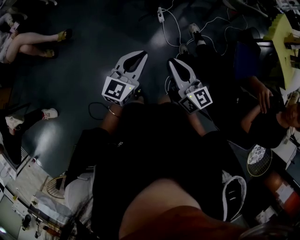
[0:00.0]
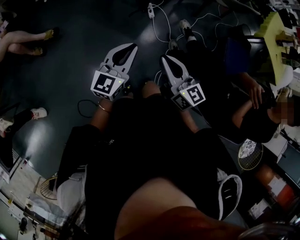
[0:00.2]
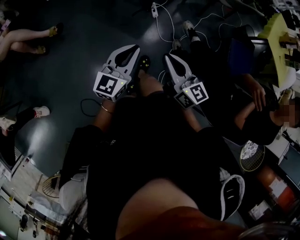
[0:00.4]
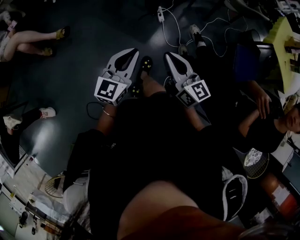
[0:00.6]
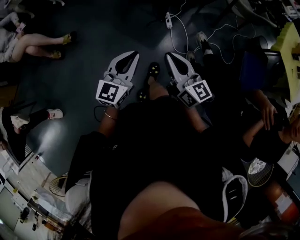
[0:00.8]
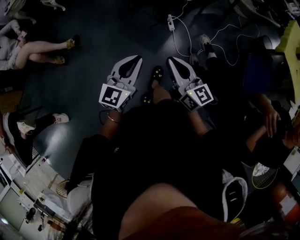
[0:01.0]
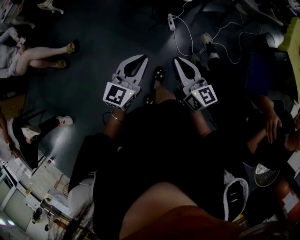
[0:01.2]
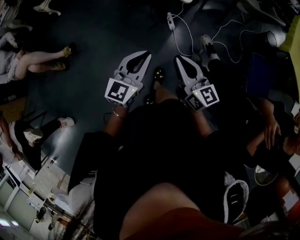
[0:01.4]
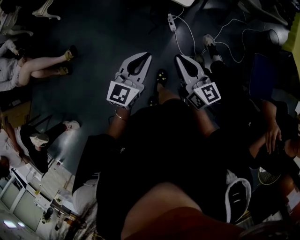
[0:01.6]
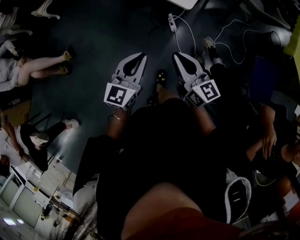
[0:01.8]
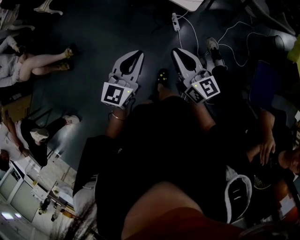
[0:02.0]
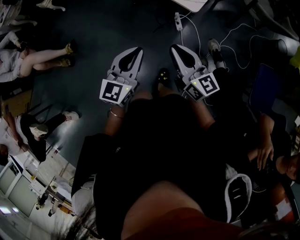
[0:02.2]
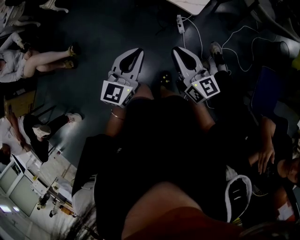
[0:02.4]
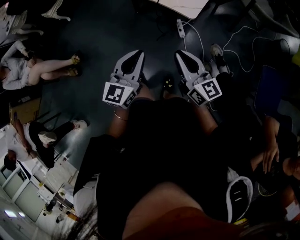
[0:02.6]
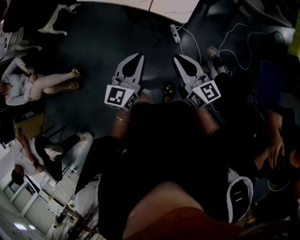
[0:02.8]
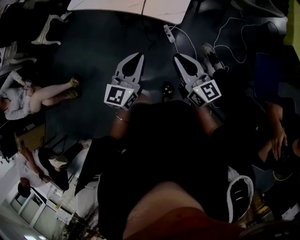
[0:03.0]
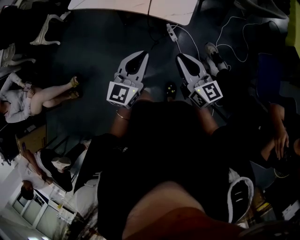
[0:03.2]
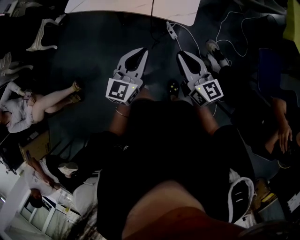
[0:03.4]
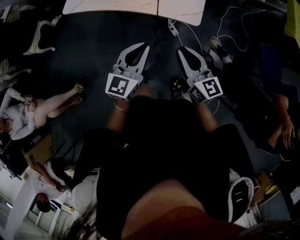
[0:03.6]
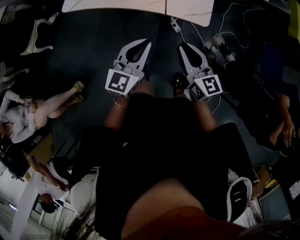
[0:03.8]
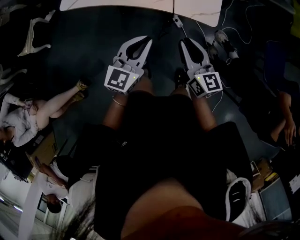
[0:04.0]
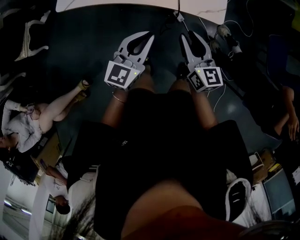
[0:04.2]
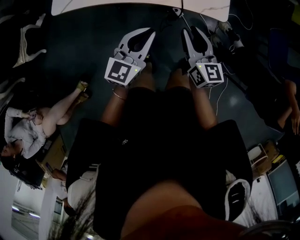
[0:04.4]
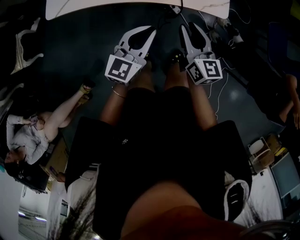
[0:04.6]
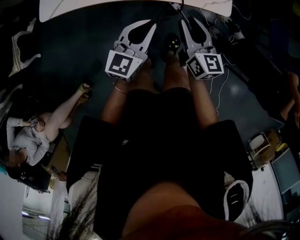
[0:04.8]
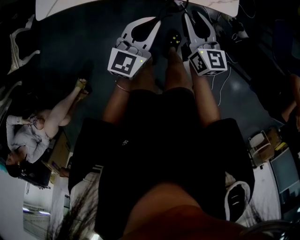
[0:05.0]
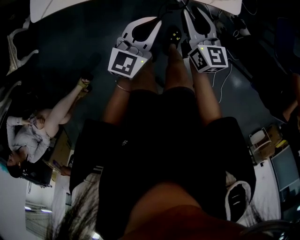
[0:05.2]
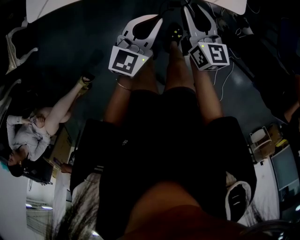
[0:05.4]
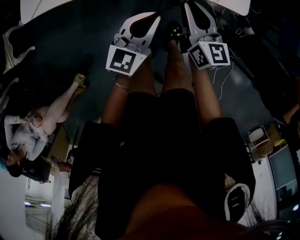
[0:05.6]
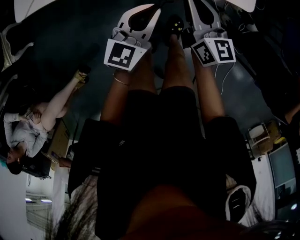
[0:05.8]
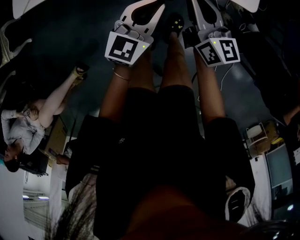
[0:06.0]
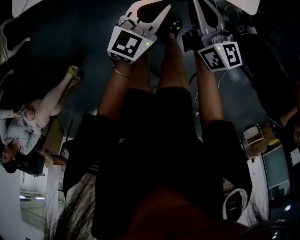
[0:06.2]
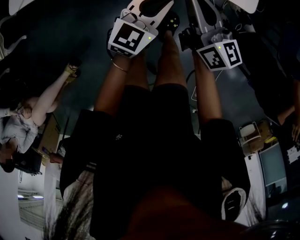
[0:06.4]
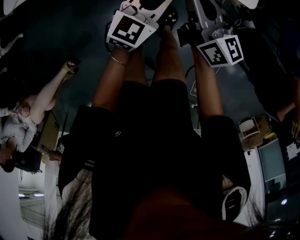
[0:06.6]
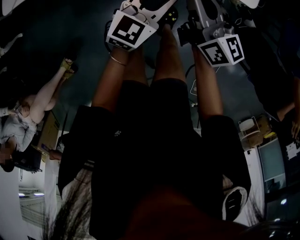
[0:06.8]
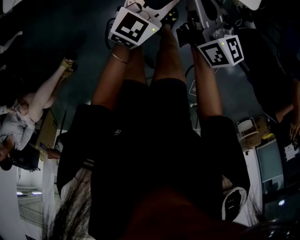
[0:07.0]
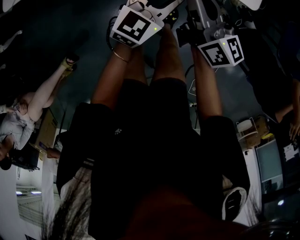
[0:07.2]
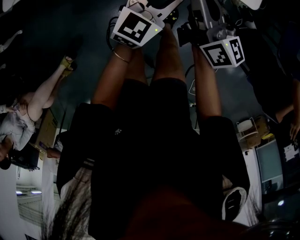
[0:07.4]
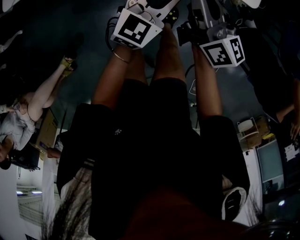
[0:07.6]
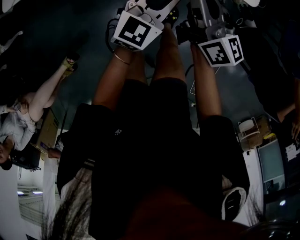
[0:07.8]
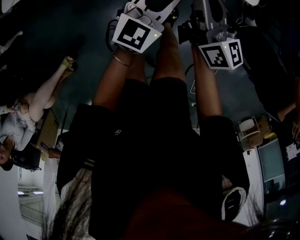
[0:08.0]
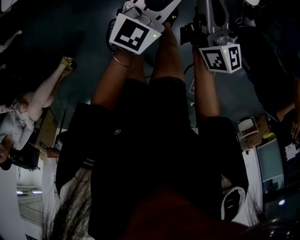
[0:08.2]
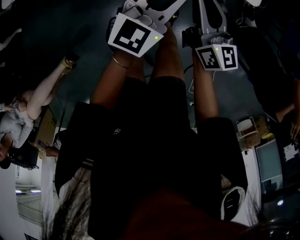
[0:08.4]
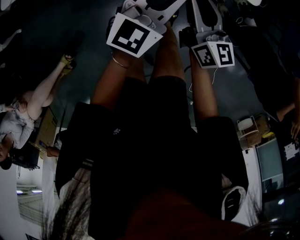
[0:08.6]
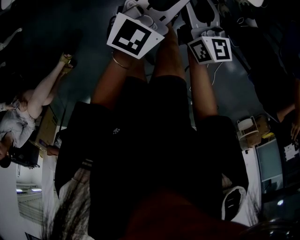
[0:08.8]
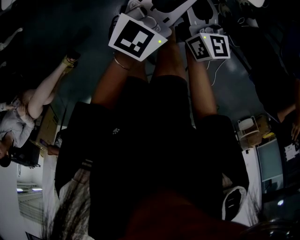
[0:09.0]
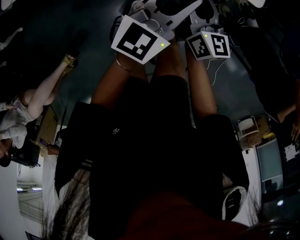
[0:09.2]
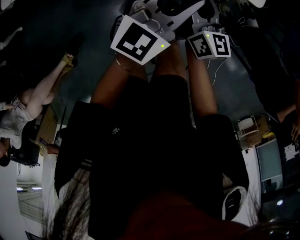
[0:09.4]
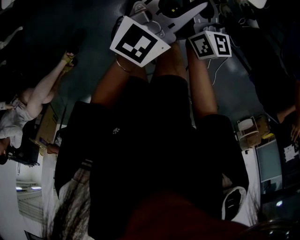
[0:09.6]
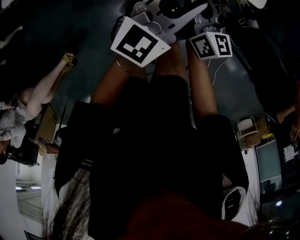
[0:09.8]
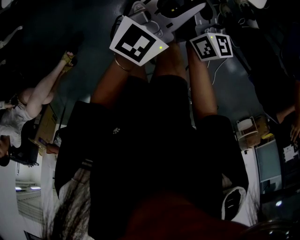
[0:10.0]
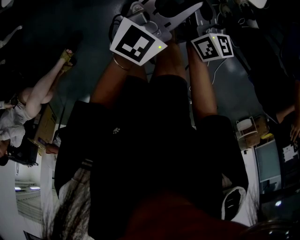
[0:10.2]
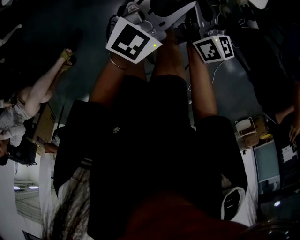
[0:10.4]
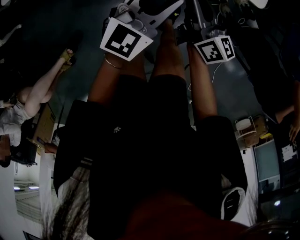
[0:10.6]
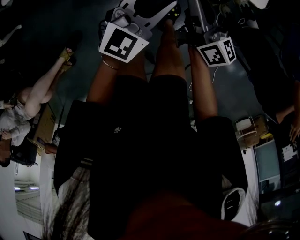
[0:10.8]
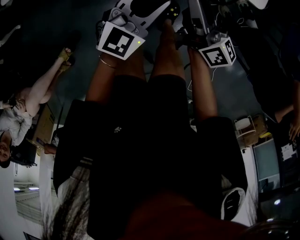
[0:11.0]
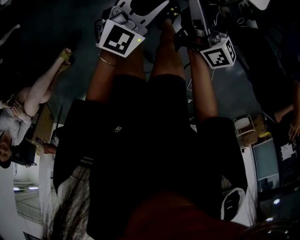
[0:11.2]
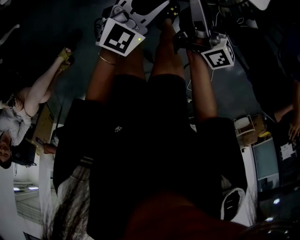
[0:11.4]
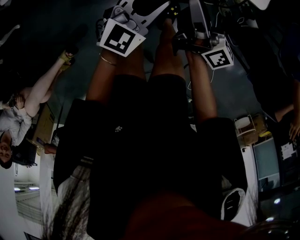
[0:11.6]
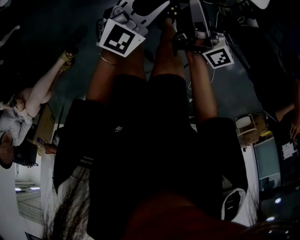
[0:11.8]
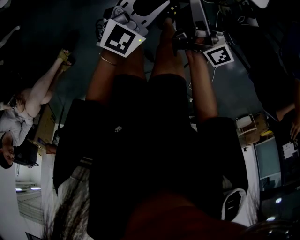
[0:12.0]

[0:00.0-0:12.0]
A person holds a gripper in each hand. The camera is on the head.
0:00.0 to 0:01.6: Both grippers travel together forward, about 20 cm.
0:01.6 to 0:03.0: Both grippers move forward, roughly 10 cm.
0:03.0 to 0:04.4: The right gripper ends up about 20 cm from where it was, rotates approximately 30 degrees, and opens up. The left gripper moves approximately 20 cm, and rotates about 30 degrees.
0:04.4 to 0:06.0: The right gripper moves downward and forward, approximately 10 cm, while the left gripper shifts some 10 cm downward.
0:06.0 to 0:07.6: There are only small adjustments of the grippers.
0:07.6 to 0:09.0: The right gripper shifts some 5 cm downward, and opens its fingers. The left gripper moves upward, approximately 5 cm.
0:09.0 to 0:10.4: The right gripper closes up.
0:10.4 to 0:12.0: The left gripper shifts about 5 cm downward, while the right gripper rotates roughly 30 degrees.

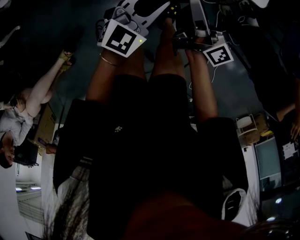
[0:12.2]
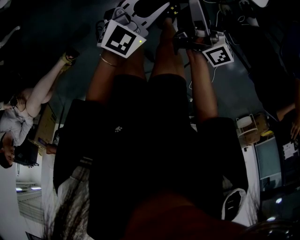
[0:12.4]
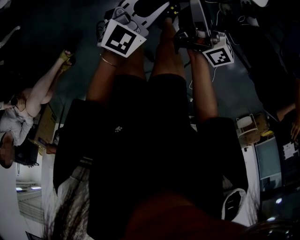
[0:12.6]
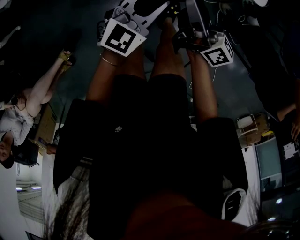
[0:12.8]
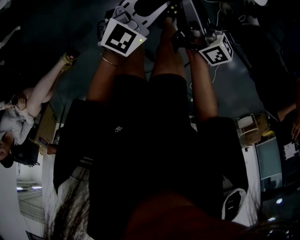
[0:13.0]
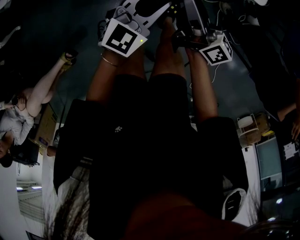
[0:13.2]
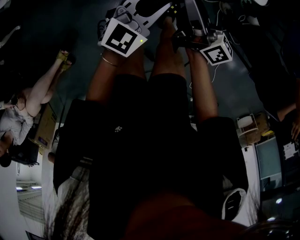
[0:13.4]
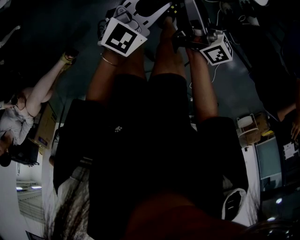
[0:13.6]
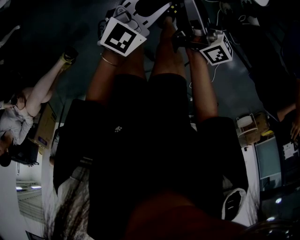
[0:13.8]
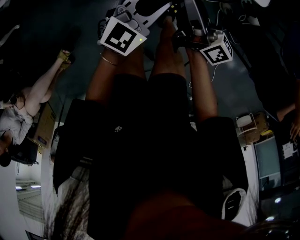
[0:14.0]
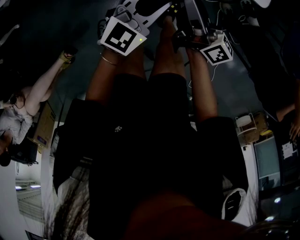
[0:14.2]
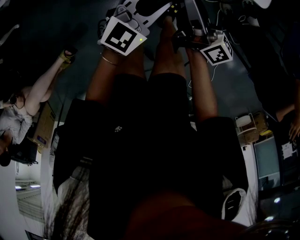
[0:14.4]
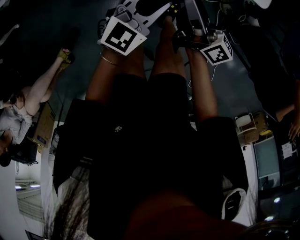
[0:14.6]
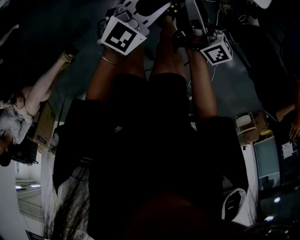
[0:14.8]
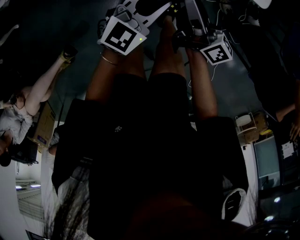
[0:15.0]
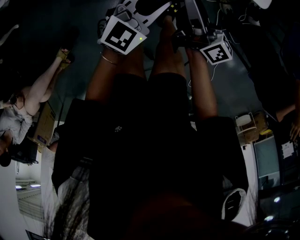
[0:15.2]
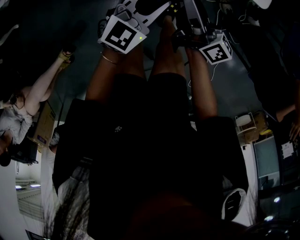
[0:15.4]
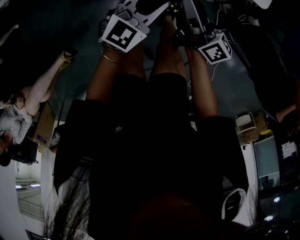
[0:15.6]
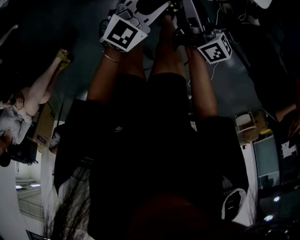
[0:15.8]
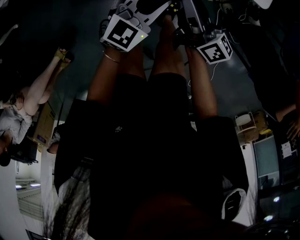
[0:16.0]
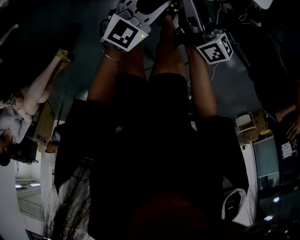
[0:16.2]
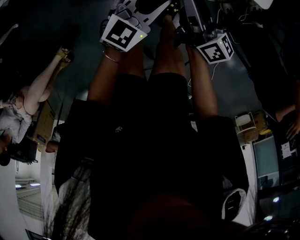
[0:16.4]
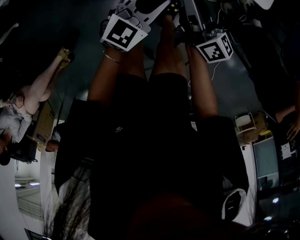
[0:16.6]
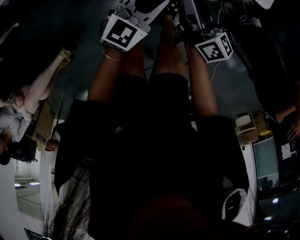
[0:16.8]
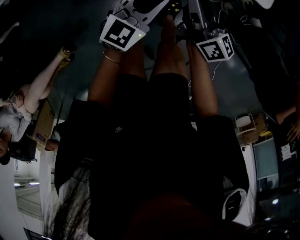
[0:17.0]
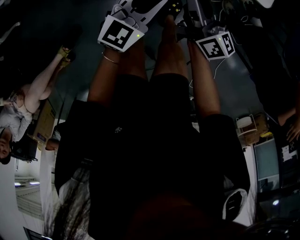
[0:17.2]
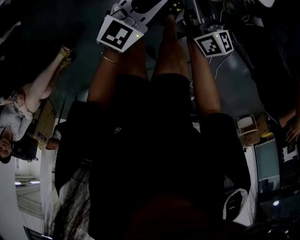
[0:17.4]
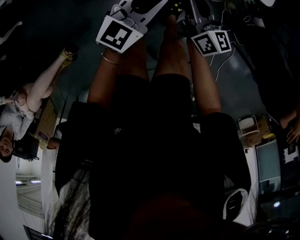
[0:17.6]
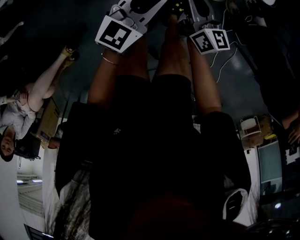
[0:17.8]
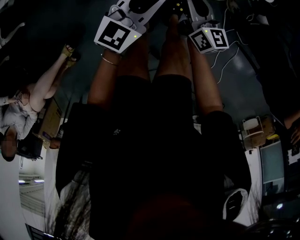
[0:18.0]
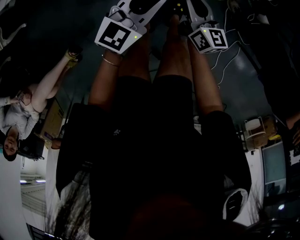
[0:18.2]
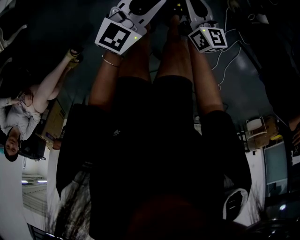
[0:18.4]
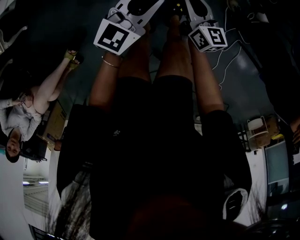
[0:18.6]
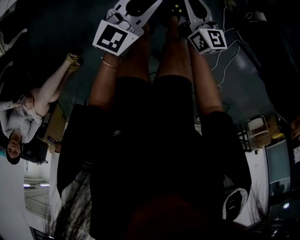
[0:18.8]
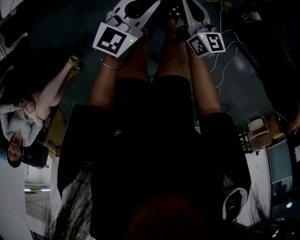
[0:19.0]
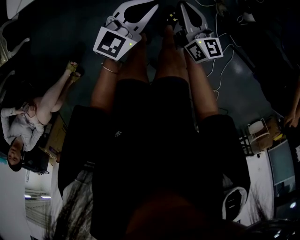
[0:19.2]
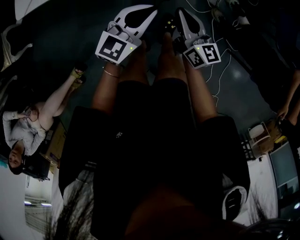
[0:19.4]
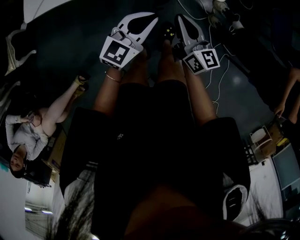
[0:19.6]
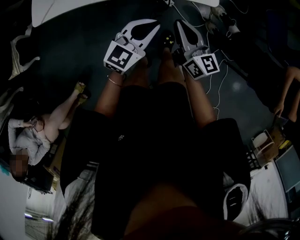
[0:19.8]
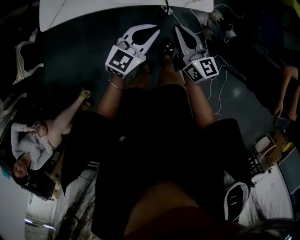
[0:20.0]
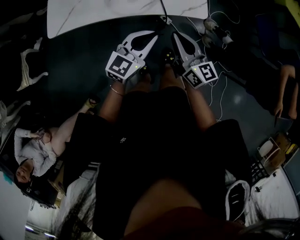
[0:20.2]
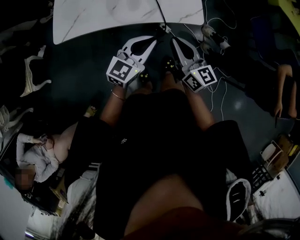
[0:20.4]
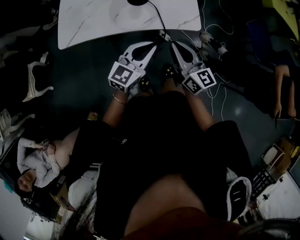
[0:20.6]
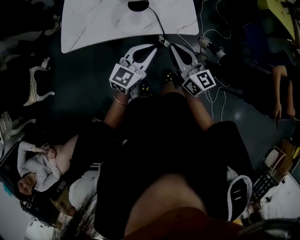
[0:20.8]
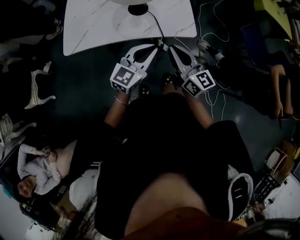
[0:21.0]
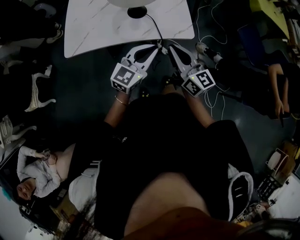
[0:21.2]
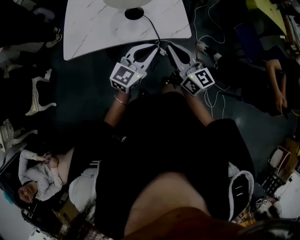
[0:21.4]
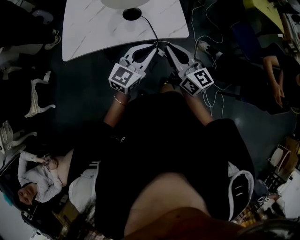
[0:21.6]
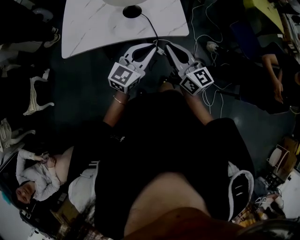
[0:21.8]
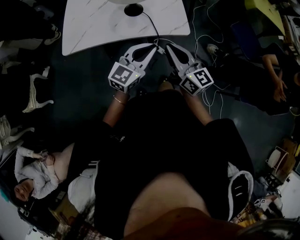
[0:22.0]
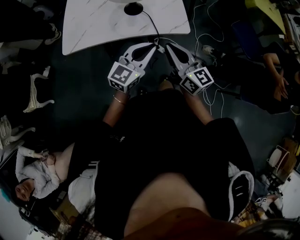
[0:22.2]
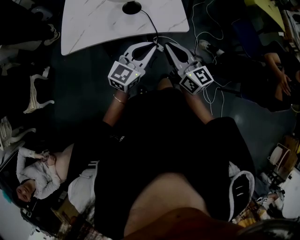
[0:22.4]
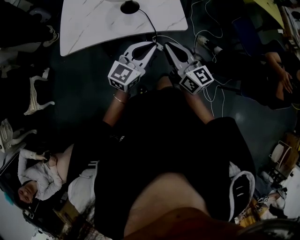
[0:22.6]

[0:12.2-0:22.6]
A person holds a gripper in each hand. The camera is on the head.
0:12.2 to 0:13.6: The grippers stay close to where they were, moving slightly.
0:13.6 to 0:15.2: The two grippers keep their place.
0:15.2 to 0:16.6: The grippers move only a little.
0:16.6 to 0:18.2: The right gripper shifts about 5 cm downward, and swivels roughly 20 degrees.
0:18.2 to 0:19.6: The left gripper goes approximately 5 cm upward. Meanwhile the right gripper moves upward, about 10 cm.
0:19.6 to 0:21.2: The grippers both shift upward by approximately 15 cm.
0:21.2 to 0:22.6: The grippers move only a little.

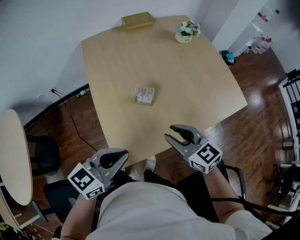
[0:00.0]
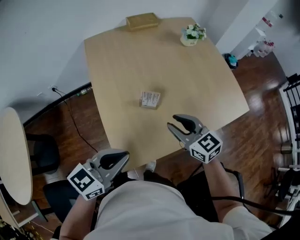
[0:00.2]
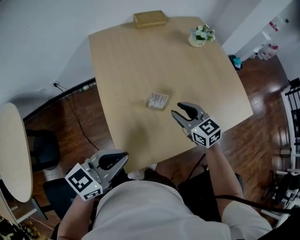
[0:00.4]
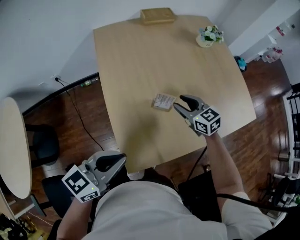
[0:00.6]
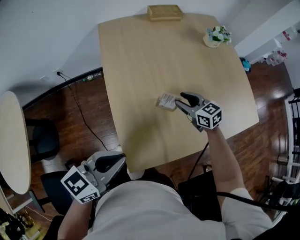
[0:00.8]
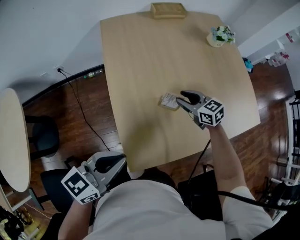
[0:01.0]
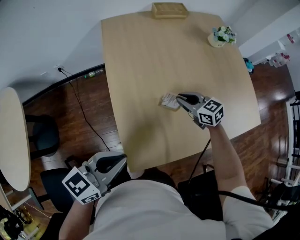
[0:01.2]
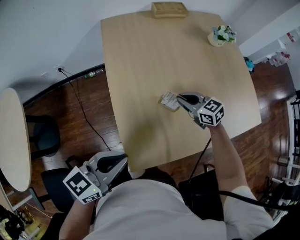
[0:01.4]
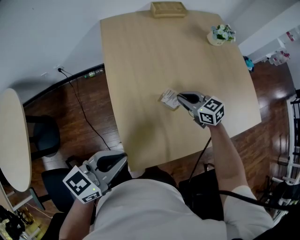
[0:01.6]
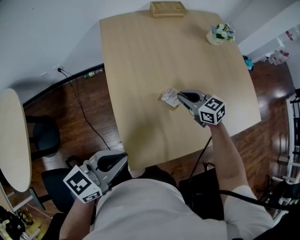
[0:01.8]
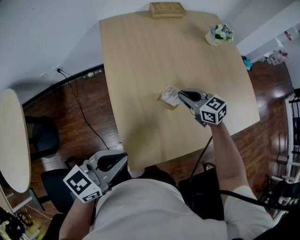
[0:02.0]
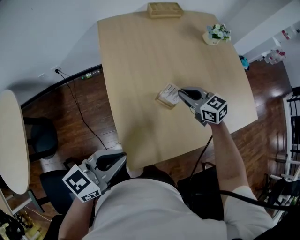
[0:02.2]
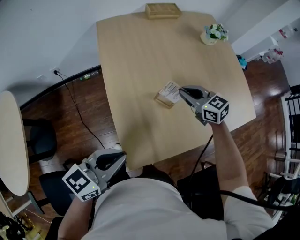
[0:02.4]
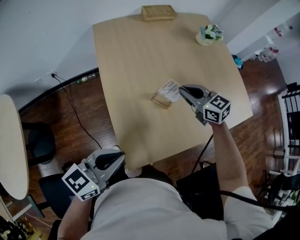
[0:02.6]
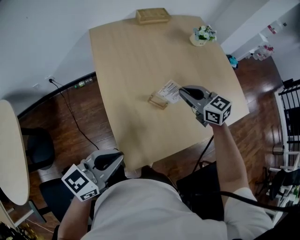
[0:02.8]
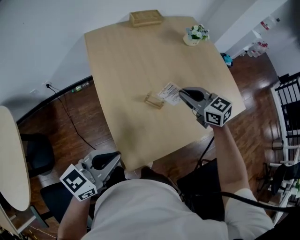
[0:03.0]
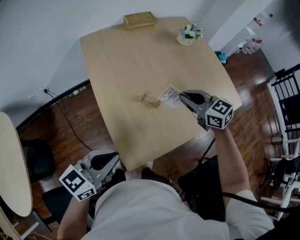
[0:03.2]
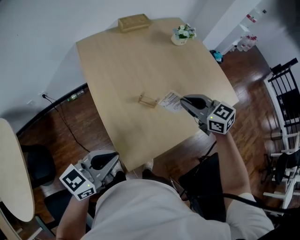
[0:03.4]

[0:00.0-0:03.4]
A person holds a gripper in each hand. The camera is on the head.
0:00.0 to 0:01.6: The right gripper shifts roughly 25 cm forward and downward, and closes; the left gripper moves to the left, approximately 10 cm.
0:01.6 to 0:03.4: The right gripper travels upward and backward by roughly 20 cm.
